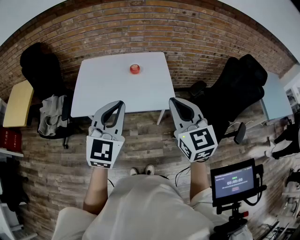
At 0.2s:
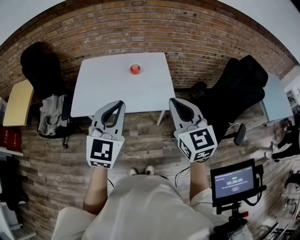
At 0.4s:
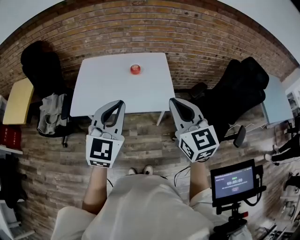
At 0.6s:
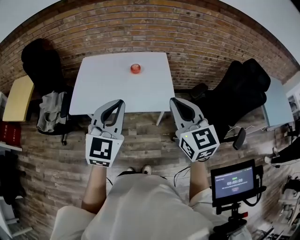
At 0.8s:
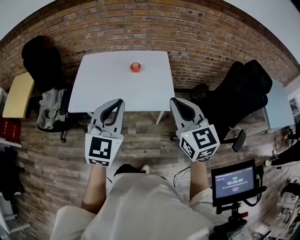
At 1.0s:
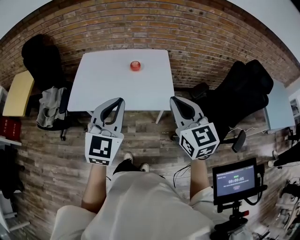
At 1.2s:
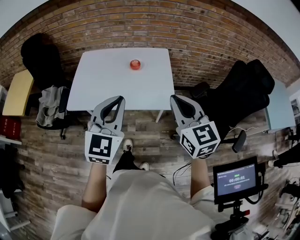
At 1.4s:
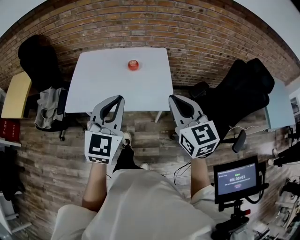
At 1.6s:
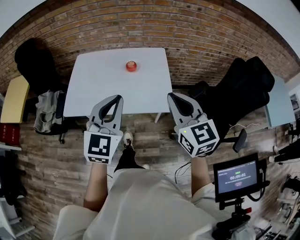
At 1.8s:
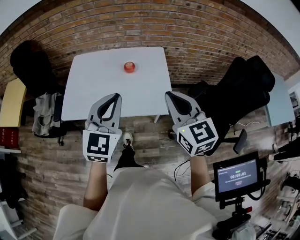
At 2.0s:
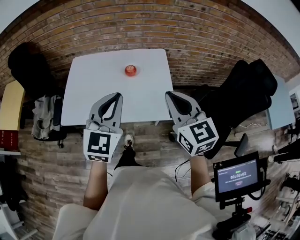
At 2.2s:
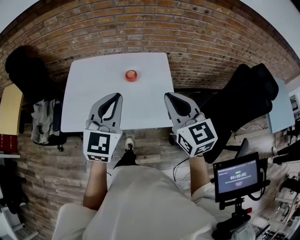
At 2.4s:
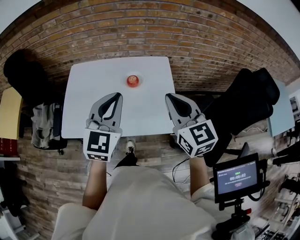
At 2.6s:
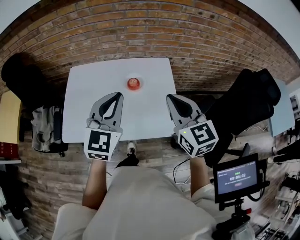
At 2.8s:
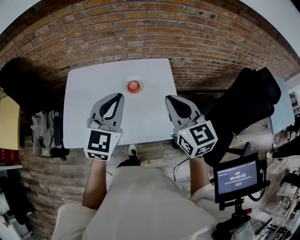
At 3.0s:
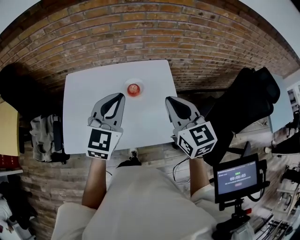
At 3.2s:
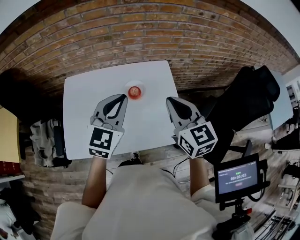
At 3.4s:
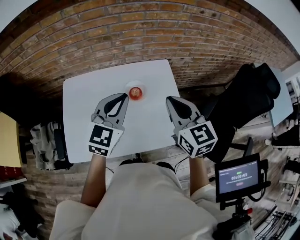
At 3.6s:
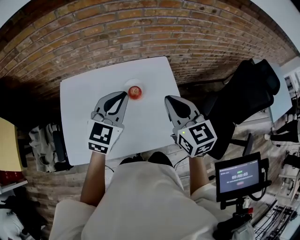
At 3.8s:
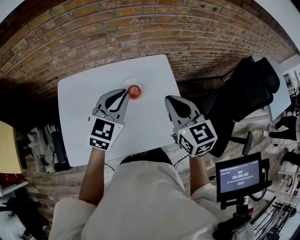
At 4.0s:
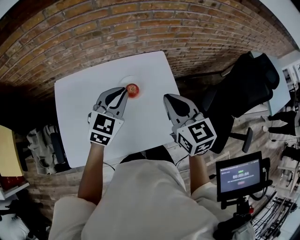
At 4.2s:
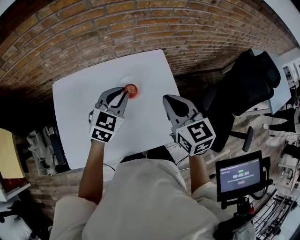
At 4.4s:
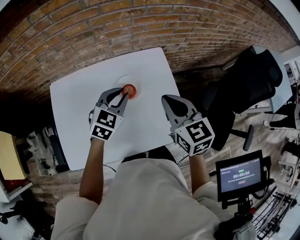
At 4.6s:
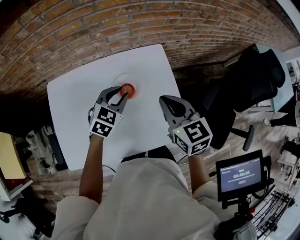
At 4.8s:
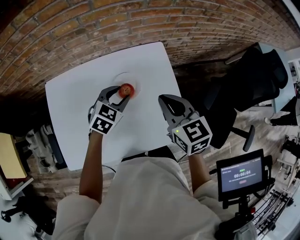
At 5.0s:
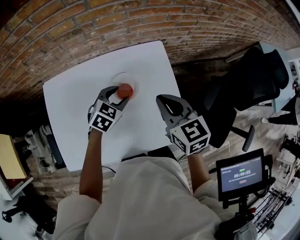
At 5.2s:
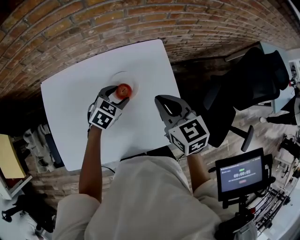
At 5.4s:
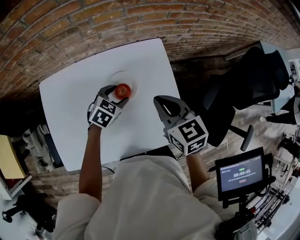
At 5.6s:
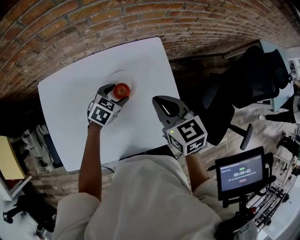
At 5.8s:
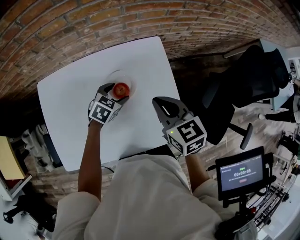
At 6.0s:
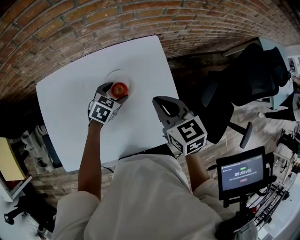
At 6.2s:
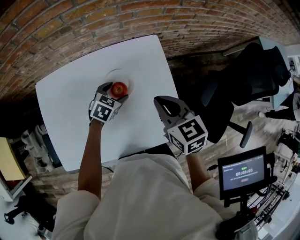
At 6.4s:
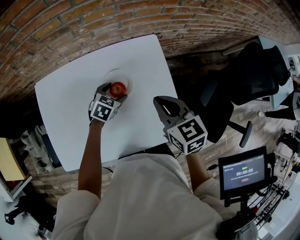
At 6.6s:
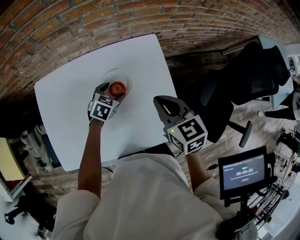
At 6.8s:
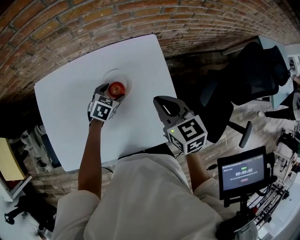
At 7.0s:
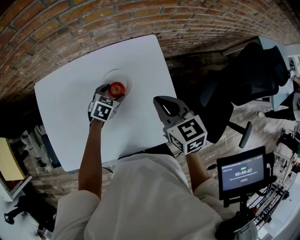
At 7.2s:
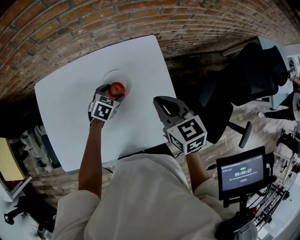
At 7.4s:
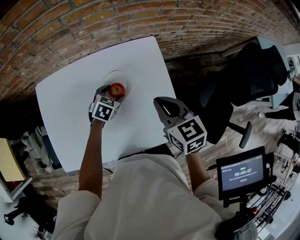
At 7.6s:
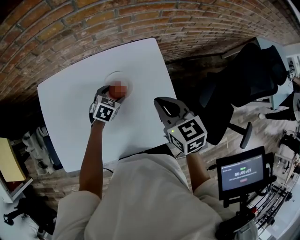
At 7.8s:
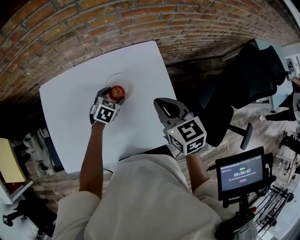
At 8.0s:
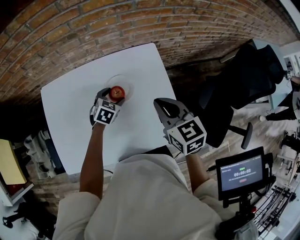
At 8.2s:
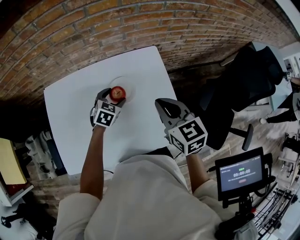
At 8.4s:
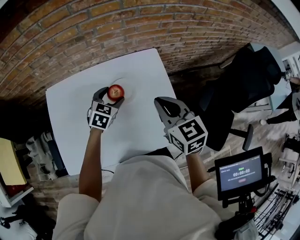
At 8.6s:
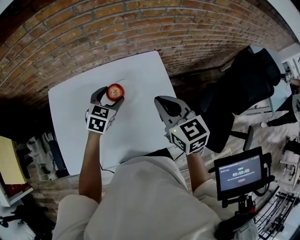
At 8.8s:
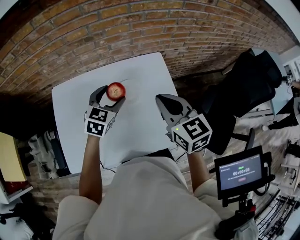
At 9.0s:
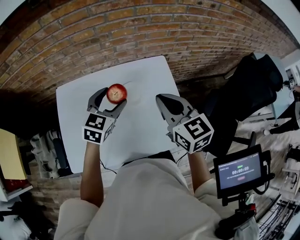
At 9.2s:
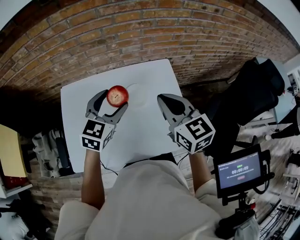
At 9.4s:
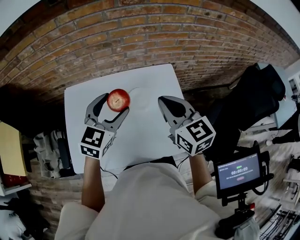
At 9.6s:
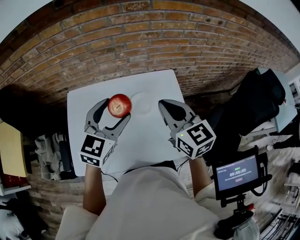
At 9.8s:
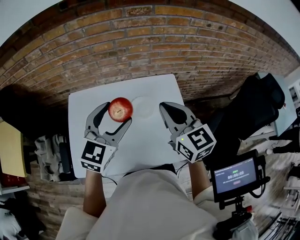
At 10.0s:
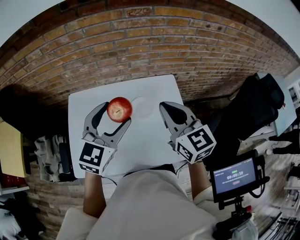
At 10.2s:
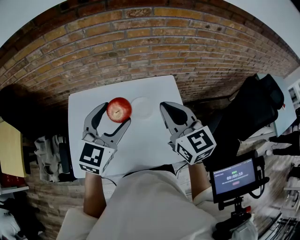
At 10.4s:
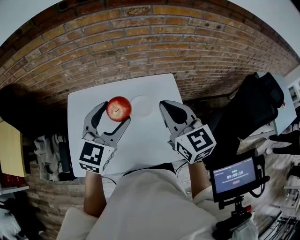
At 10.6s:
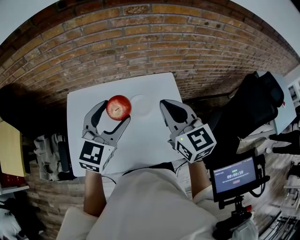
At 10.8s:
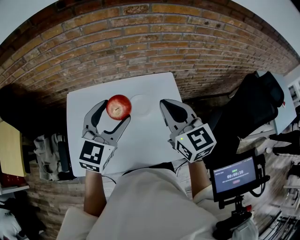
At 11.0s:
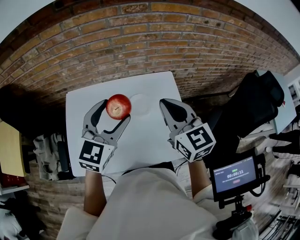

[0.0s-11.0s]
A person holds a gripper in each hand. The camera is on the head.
0.0s to 1.6s: The grippers both shift forward by about 5 cm.
1.6s to 3.2s: The two grippers go roughly 25 cm forward.
3.2s to 4.8s: The right gripper shifts some 15 cm forward and downward. Meanwhile the left gripper travels downward and forward by approximately 25 cm, points its fingers roughly 30 degrees further downward, and opens its fingers.
4.8s to 6.2s: The left gripper shifts some 10 cm downward, and opens its fingers.
6.2s to 7.8s: The grippers make only small movements.
7.8s to 9.4s: The left gripper heads upward, covering roughly 30 cm, and tilts its fingers roughly 30 degrees upward, while the right gripper heads upward and to the left, covering about 10 cm.
9.4s to 11.0s: The left gripper changes place by approximately 5 cm.

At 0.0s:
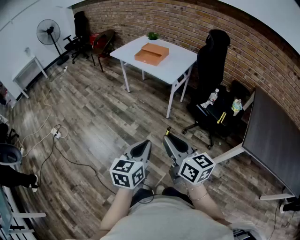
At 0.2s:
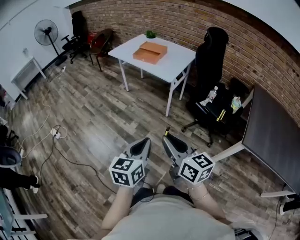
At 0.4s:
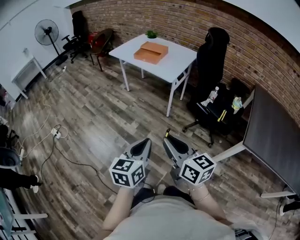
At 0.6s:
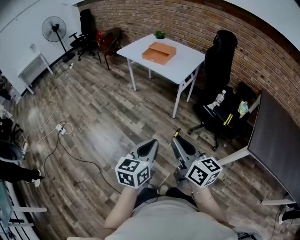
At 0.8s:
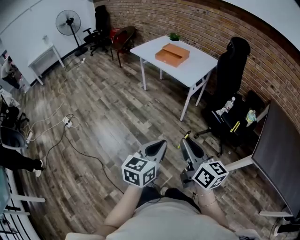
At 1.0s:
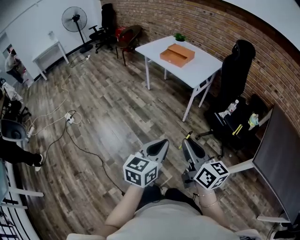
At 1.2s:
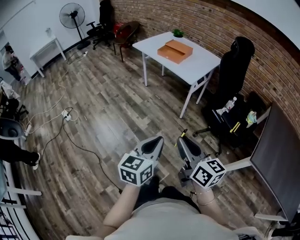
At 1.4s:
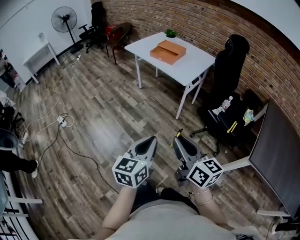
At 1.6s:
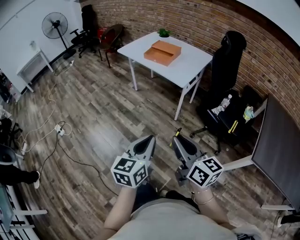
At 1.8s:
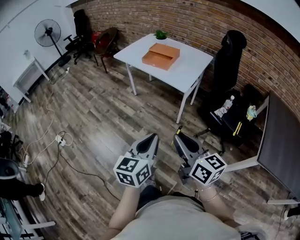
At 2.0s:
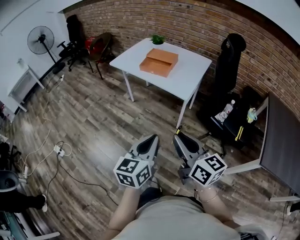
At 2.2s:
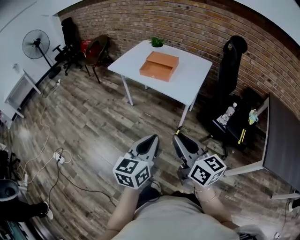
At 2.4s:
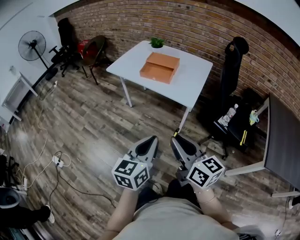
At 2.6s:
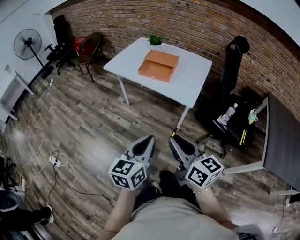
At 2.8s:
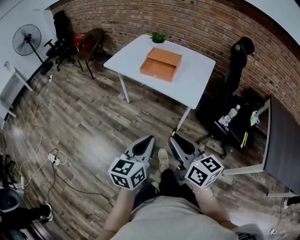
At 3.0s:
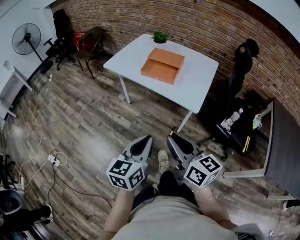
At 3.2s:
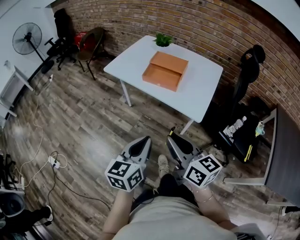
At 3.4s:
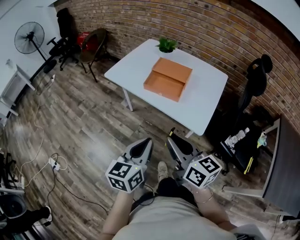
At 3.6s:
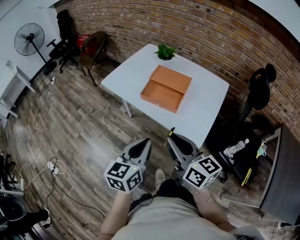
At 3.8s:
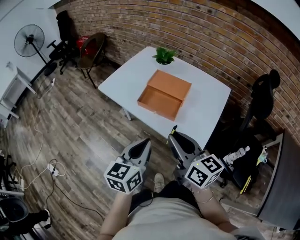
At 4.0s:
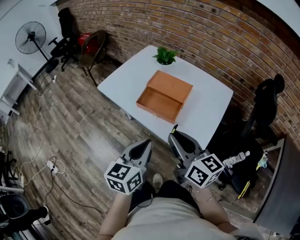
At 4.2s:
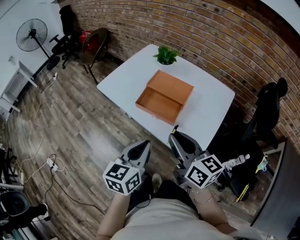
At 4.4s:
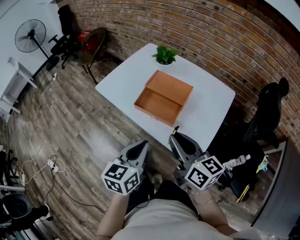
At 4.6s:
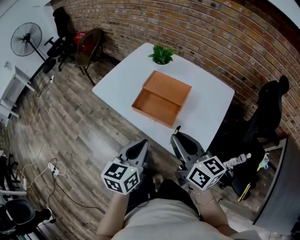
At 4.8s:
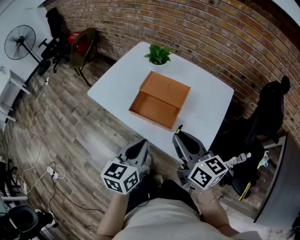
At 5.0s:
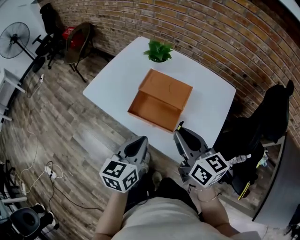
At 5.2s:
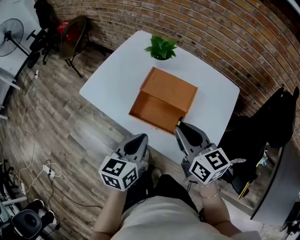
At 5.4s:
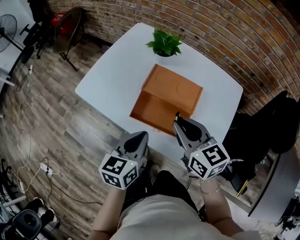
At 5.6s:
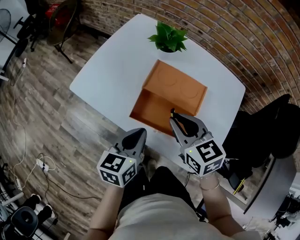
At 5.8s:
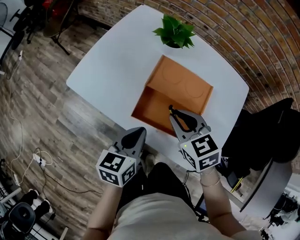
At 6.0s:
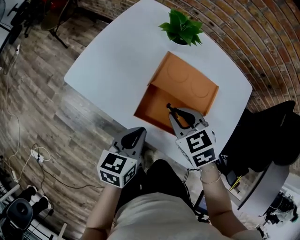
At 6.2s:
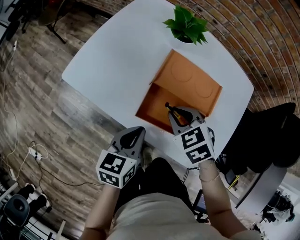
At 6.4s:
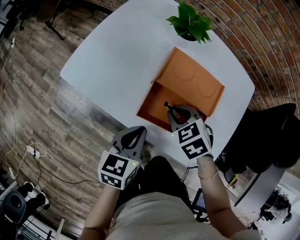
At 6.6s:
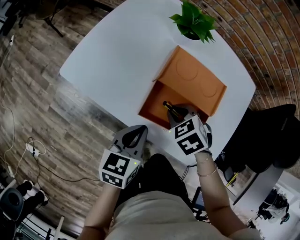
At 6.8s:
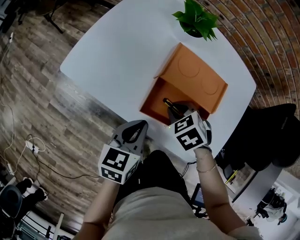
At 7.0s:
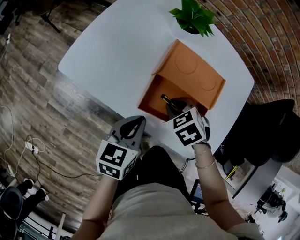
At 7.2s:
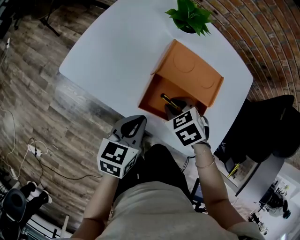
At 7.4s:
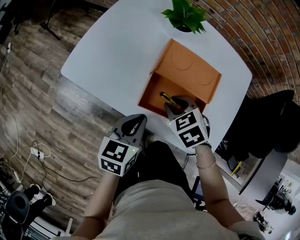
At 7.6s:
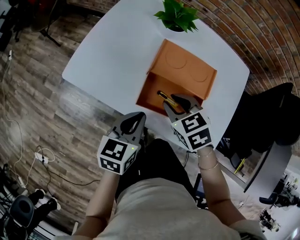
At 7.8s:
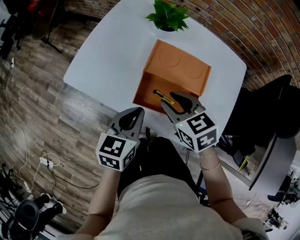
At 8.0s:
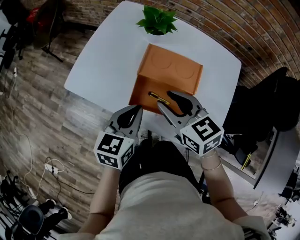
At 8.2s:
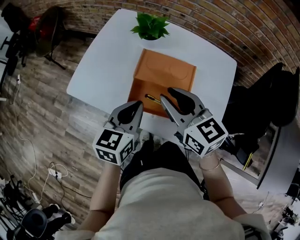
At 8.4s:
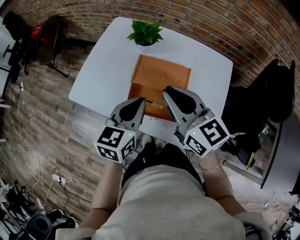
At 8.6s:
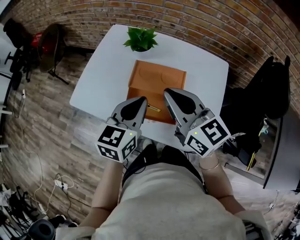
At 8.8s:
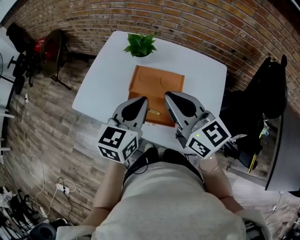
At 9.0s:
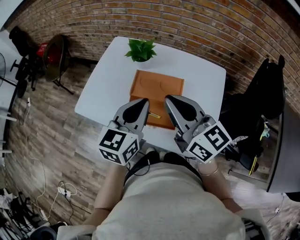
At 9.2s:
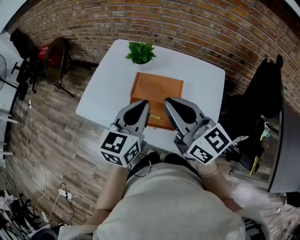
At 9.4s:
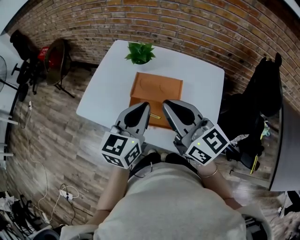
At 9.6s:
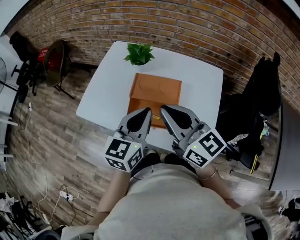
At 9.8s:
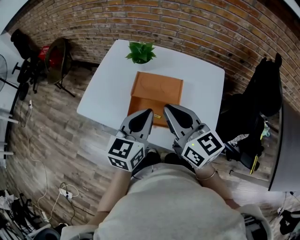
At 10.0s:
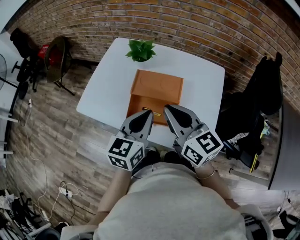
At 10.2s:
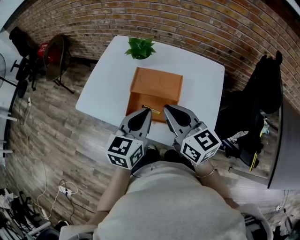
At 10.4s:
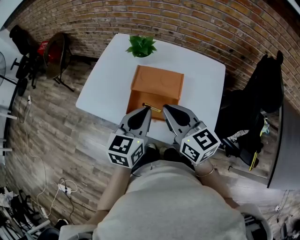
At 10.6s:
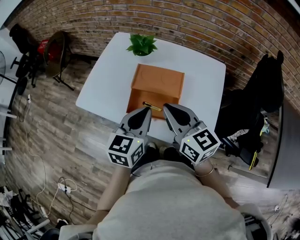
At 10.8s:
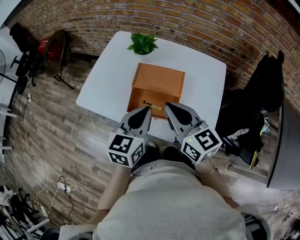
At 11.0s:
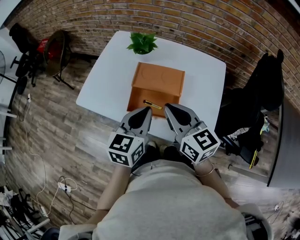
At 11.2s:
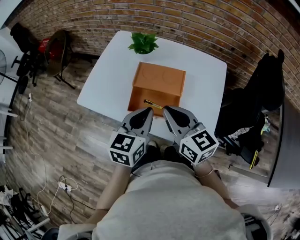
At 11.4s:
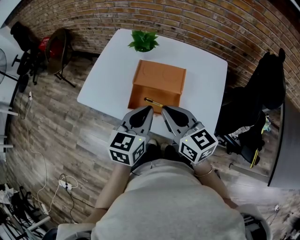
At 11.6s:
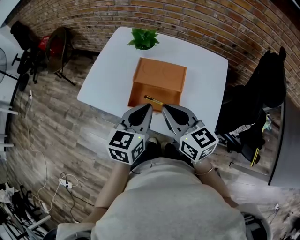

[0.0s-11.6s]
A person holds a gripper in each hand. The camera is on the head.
0.0s to 1.4s: The grippers stay close to where they were, moving slightly.
1.4s to 2.8s: The grippers both shift forward and to the left by approximately 35 cm.
2.8s to 4.4s: Both grippers travel together forward, approximately 35 cm.
4.4s to 5.8s: Both grippers travel together forward and downward, roughly 25 cm. The right gripper tilts its fingers roughly 40 degrees downward.
5.8s to 7.2s: The right gripper shifts some 10 cm downward, and changes its angle by roughly 30 degrees.
7.2s to 8.8s: The right gripper moves upward, approximately 30 cm, angles its fingers upward, by some 70 degrees, and closes up. Meanwhile the left gripper is displaced upward and to the right by some 20 cm, and swivels roughly 30 degrees.
8.8s to 10.2s: The left gripper ends up roughly 5 cm from where it was; the right gripper shifts by approximately 5 cm.
10.2s to 11.6s: There are only small adjustments of the grippers.

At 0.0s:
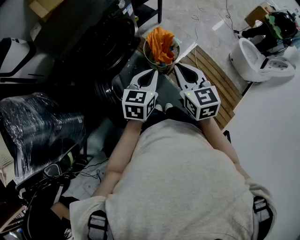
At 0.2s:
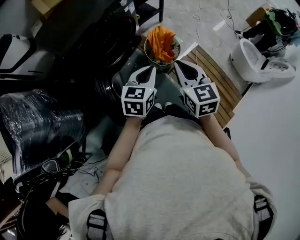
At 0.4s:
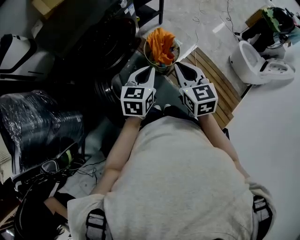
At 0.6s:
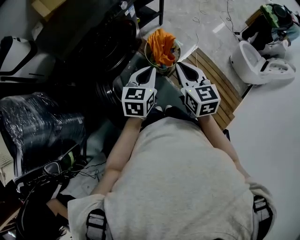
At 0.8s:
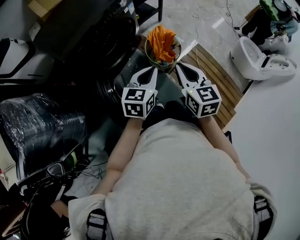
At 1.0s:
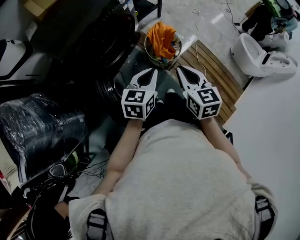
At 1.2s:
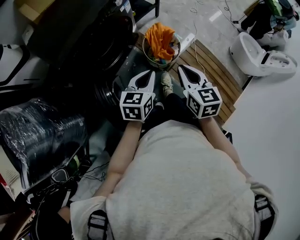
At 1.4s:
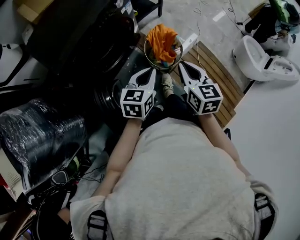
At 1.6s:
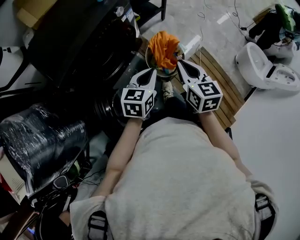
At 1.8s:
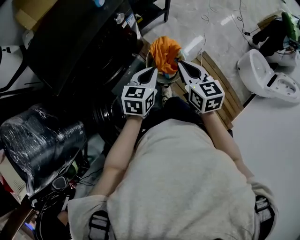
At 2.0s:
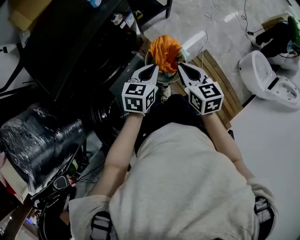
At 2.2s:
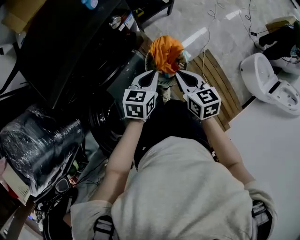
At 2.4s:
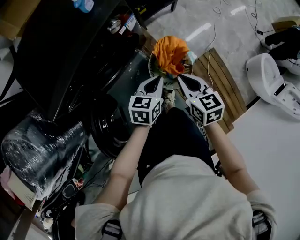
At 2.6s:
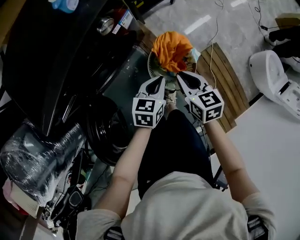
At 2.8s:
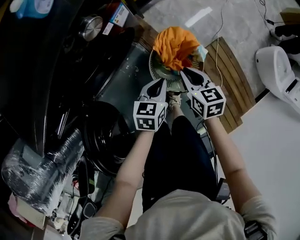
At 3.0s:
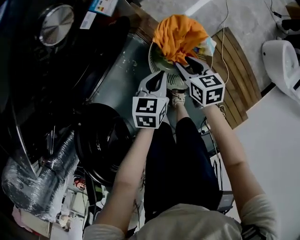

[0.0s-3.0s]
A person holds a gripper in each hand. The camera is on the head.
0.0s to 1.6s: The grippers both shift forward by approximately 15 cm.
1.6s to 3.0s: Both grippers travel together downward and forward, some 40 cm. The right gripper swivels approximately 30 degrees, and opens its fingers.
